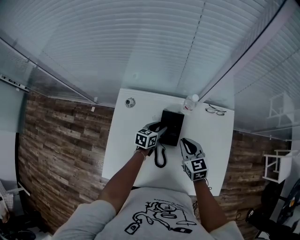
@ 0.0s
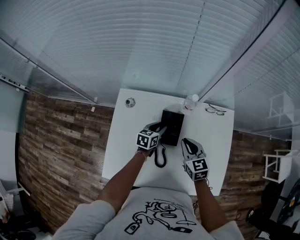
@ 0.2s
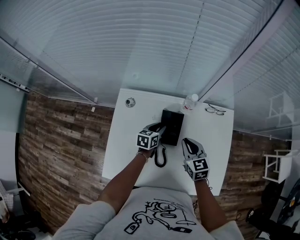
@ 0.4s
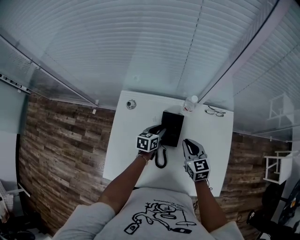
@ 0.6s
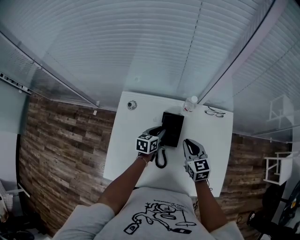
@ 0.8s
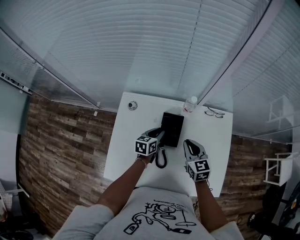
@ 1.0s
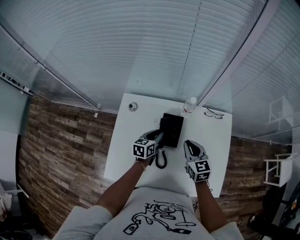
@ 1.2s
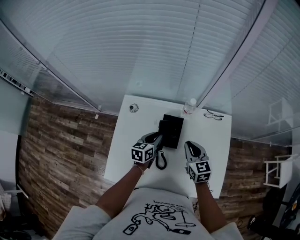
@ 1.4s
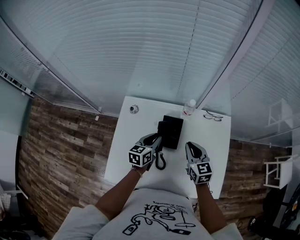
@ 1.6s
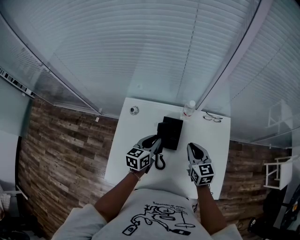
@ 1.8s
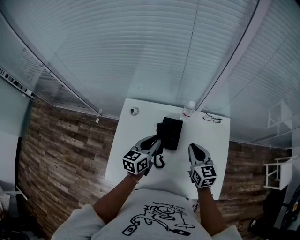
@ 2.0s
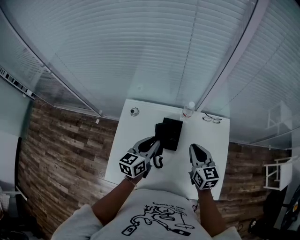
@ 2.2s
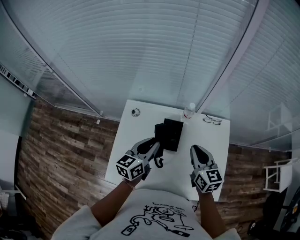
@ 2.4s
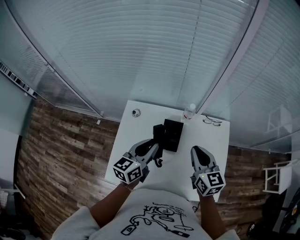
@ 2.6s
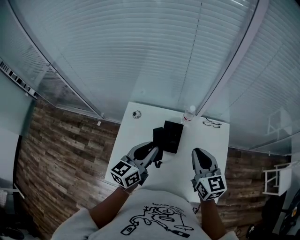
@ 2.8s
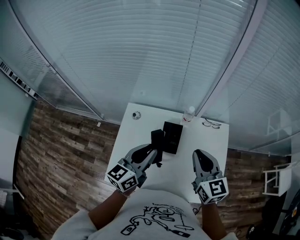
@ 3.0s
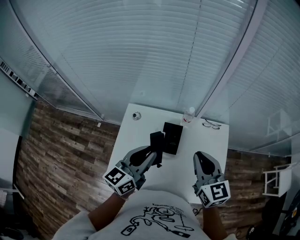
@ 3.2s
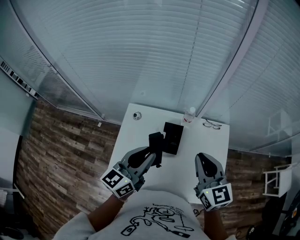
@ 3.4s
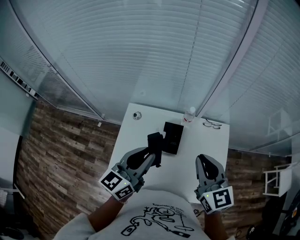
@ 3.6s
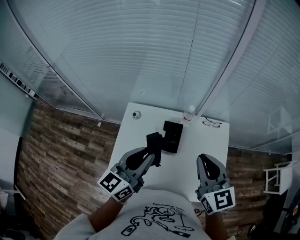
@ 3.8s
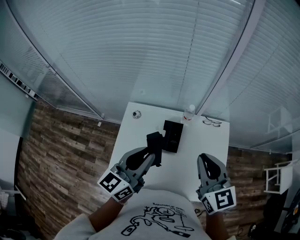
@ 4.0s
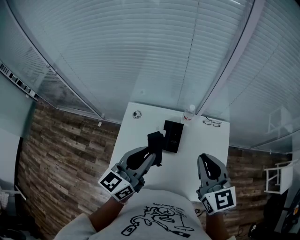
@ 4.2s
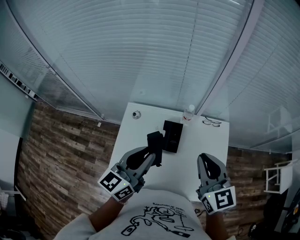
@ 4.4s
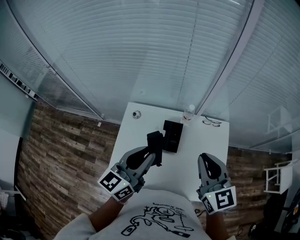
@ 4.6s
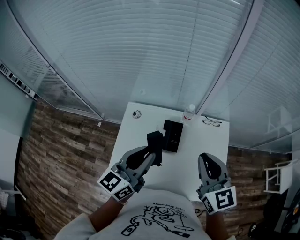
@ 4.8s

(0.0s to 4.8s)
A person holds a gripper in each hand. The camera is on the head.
0.0s - 1.6s: The right gripper is displaced upward by roughly 5 cm, while the left gripper travels upward and backward by about 15 cm, and closes up.
1.6s - 3.2s: Both grippers move upward, approximately 20 cm. The left gripper changes its angle by approximately 20 degrees.
3.2s - 4.8s: There are only small adjustments of the grippers.

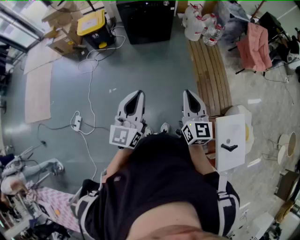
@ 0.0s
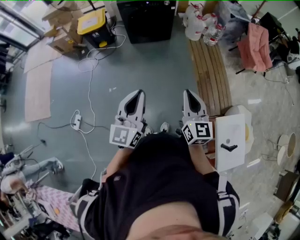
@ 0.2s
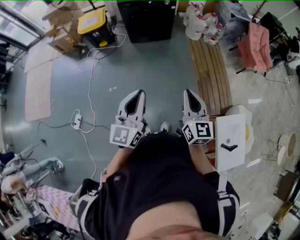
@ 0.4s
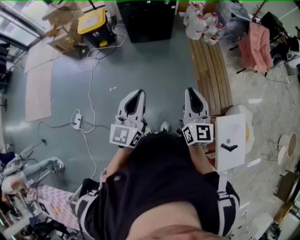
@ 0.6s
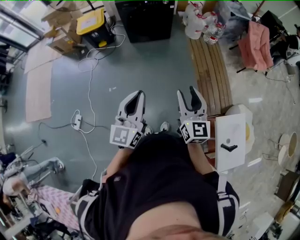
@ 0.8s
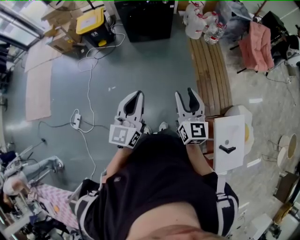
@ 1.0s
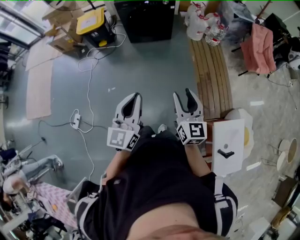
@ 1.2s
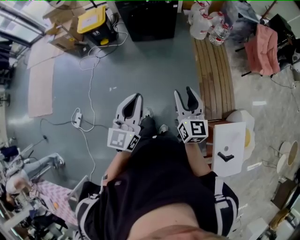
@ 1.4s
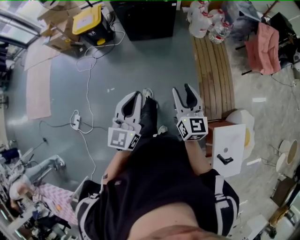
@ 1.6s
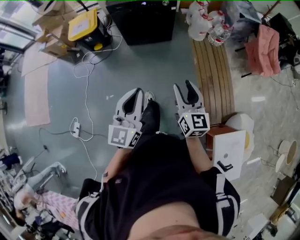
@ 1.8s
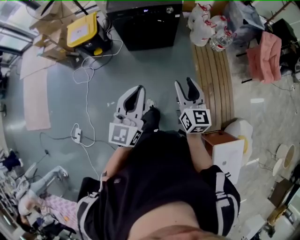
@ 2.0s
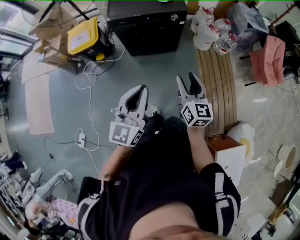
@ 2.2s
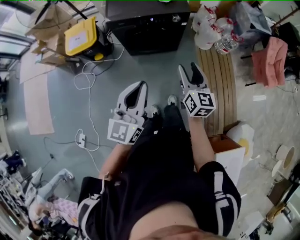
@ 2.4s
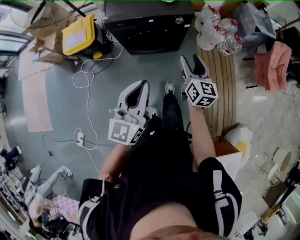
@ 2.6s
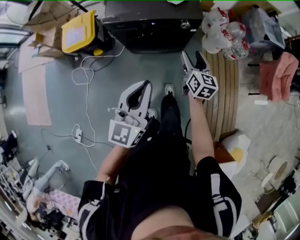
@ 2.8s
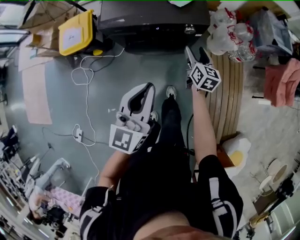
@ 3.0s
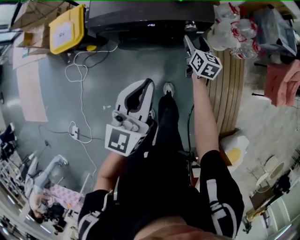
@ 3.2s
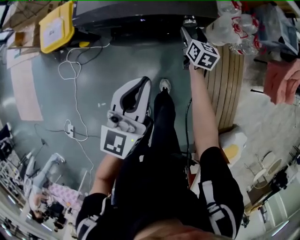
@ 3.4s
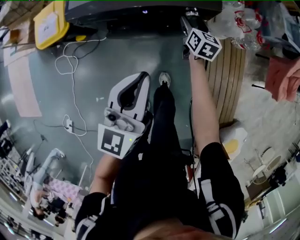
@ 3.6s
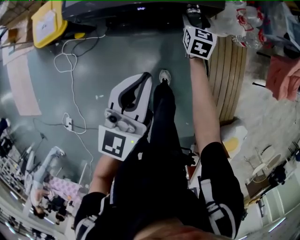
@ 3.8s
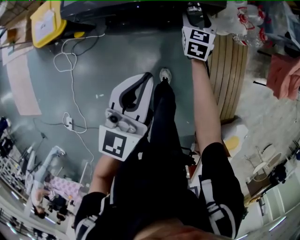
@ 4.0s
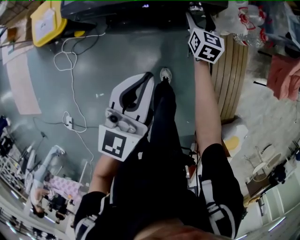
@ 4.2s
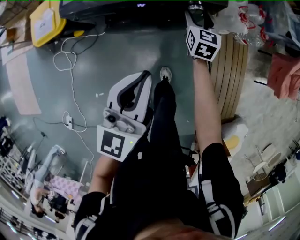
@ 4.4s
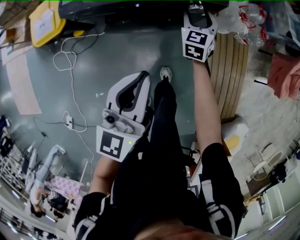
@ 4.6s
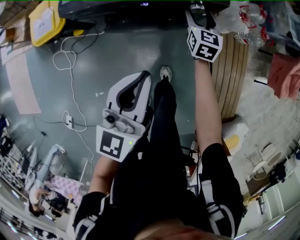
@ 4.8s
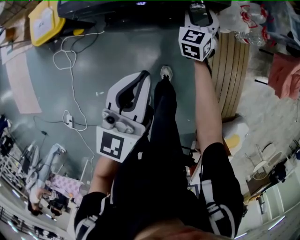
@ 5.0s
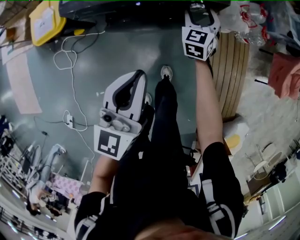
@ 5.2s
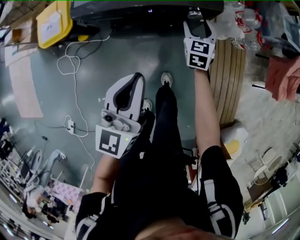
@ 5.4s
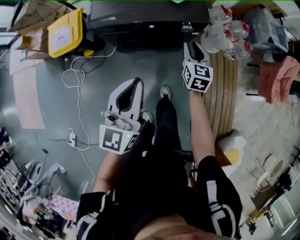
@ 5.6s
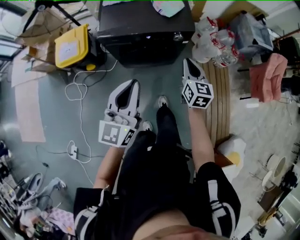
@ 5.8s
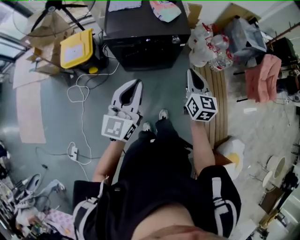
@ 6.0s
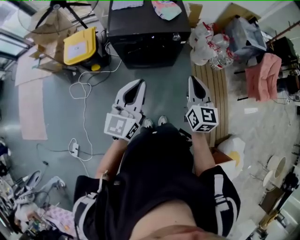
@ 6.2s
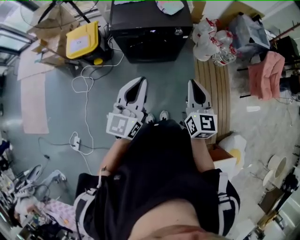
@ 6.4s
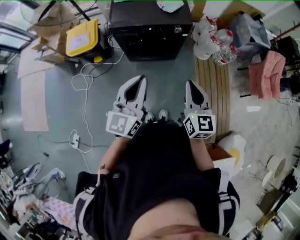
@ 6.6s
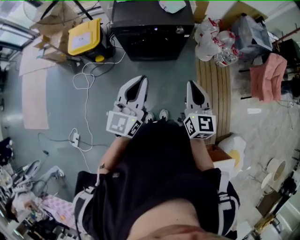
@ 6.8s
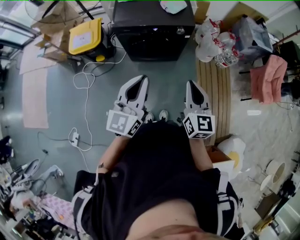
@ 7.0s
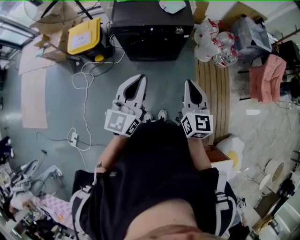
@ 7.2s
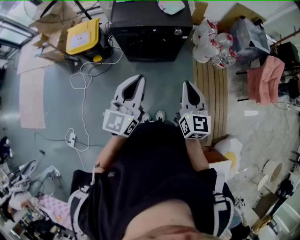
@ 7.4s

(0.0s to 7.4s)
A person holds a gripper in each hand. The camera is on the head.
0.0s - 1.4s: The right gripper is displaced forward, downward and to the right by roughly 15 cm, and opens up, while the left gripper goes roughly 10 cm forward and to the right.
1.4s - 3.0s: Both grippers are carried forward, about 1 m.
3.0s - 4.4s: Both grippers travel together downward and forward, about 25 cm. The right gripper rotates roughly 20 degrees.
4.4s - 6.0s: Both grippers move upward and backward, some 50 cm. The right gripper closes.
6.0s - 7.4s: The right gripper moves backward, about 15 cm. Meanwhile the left gripper goes some 10 cm backward.

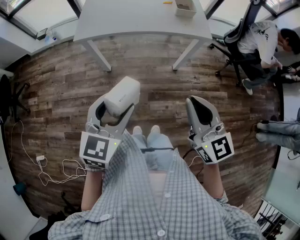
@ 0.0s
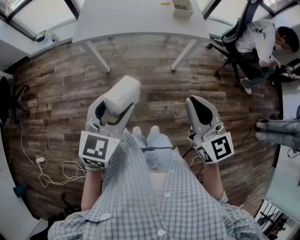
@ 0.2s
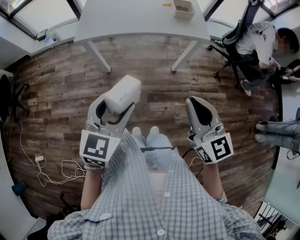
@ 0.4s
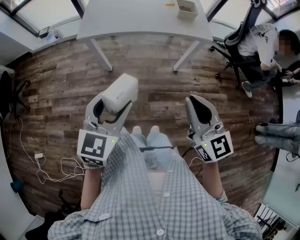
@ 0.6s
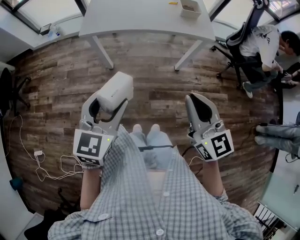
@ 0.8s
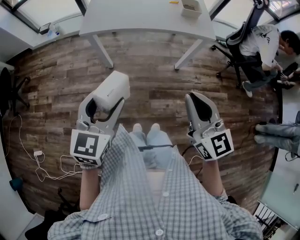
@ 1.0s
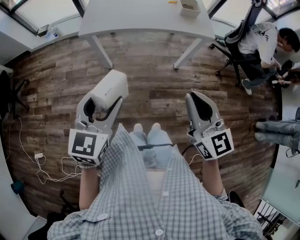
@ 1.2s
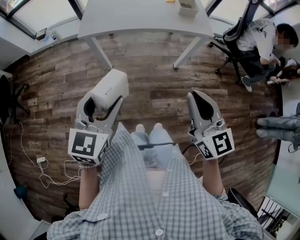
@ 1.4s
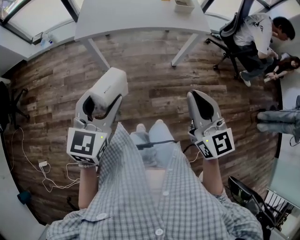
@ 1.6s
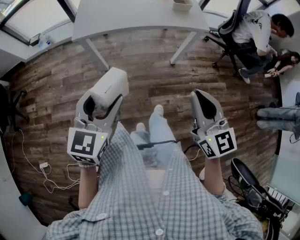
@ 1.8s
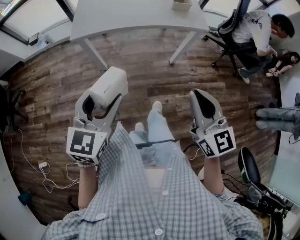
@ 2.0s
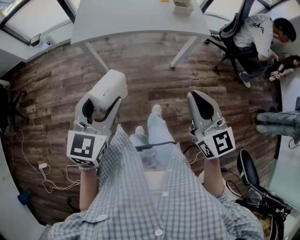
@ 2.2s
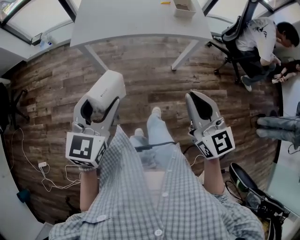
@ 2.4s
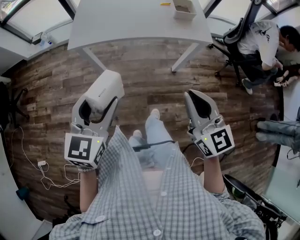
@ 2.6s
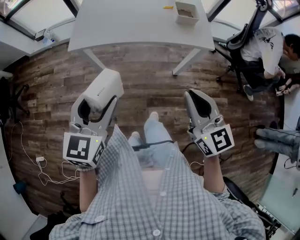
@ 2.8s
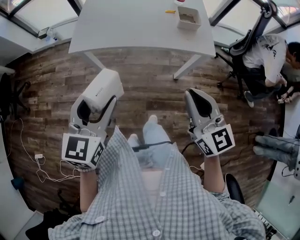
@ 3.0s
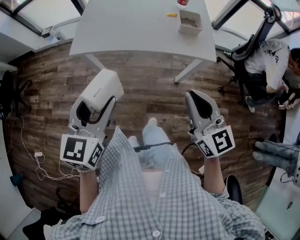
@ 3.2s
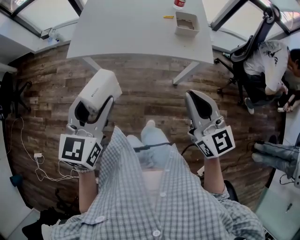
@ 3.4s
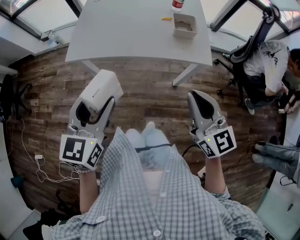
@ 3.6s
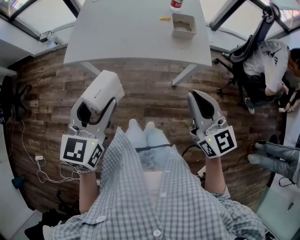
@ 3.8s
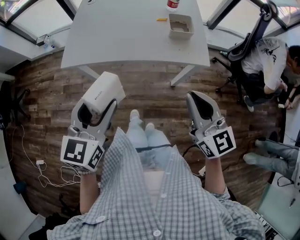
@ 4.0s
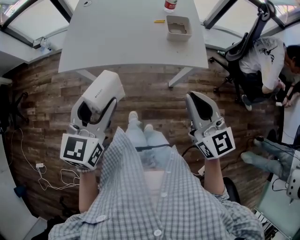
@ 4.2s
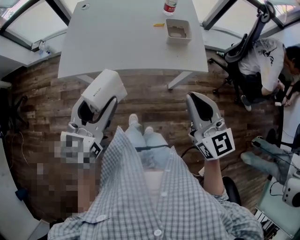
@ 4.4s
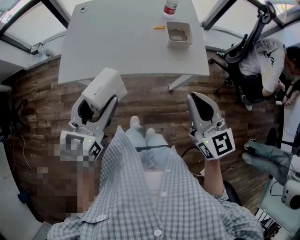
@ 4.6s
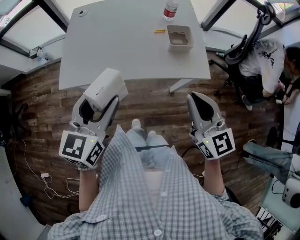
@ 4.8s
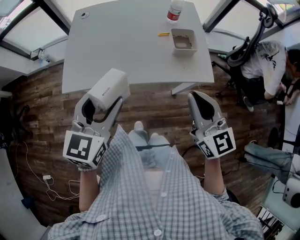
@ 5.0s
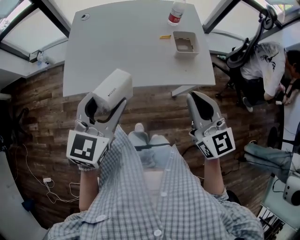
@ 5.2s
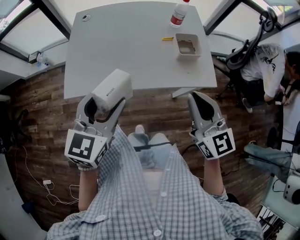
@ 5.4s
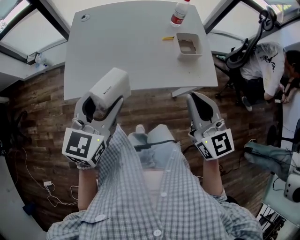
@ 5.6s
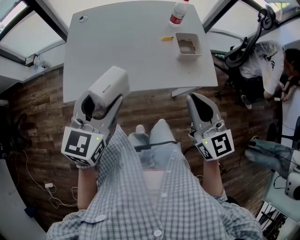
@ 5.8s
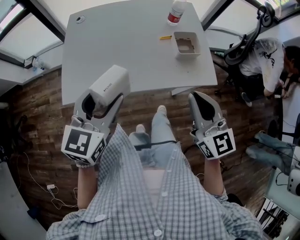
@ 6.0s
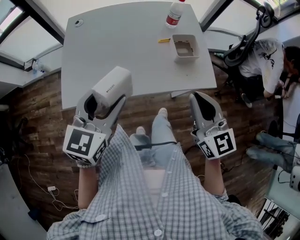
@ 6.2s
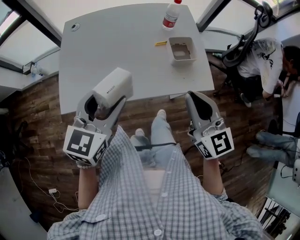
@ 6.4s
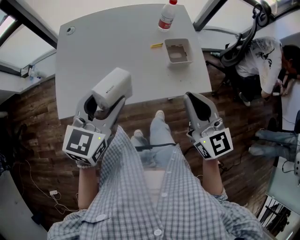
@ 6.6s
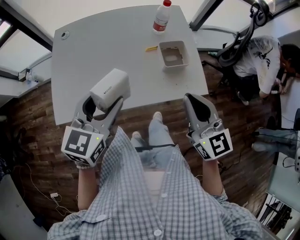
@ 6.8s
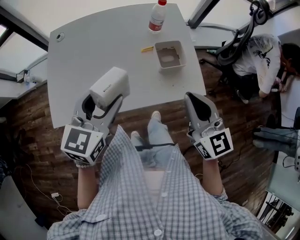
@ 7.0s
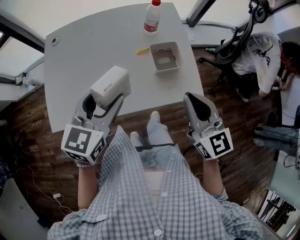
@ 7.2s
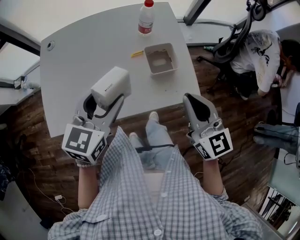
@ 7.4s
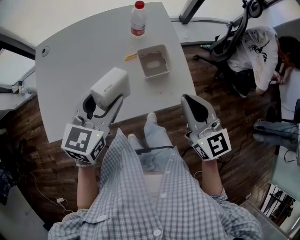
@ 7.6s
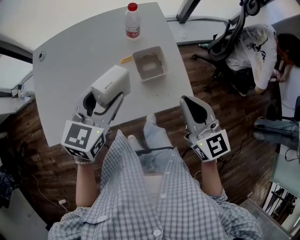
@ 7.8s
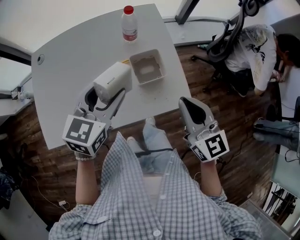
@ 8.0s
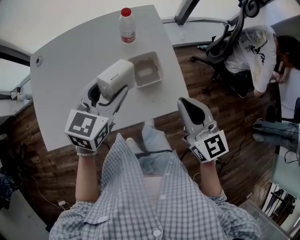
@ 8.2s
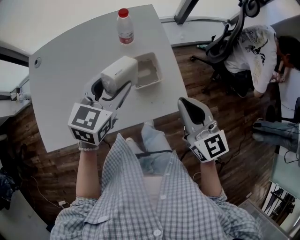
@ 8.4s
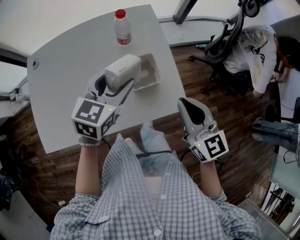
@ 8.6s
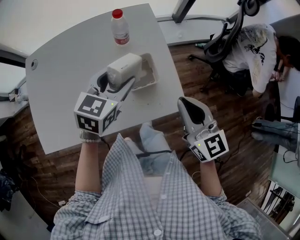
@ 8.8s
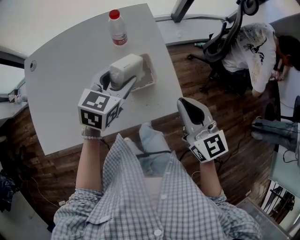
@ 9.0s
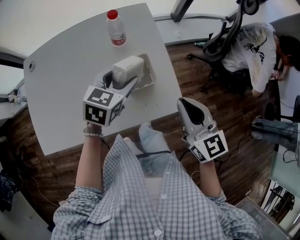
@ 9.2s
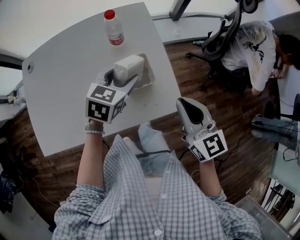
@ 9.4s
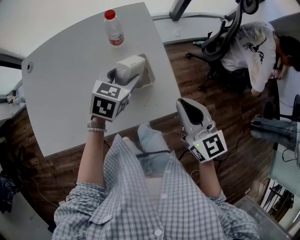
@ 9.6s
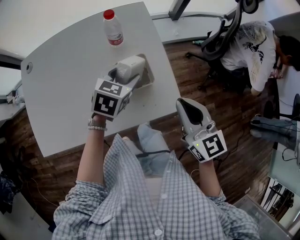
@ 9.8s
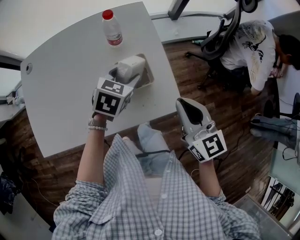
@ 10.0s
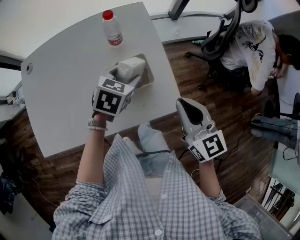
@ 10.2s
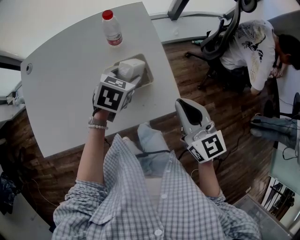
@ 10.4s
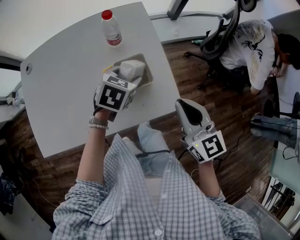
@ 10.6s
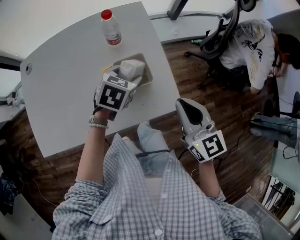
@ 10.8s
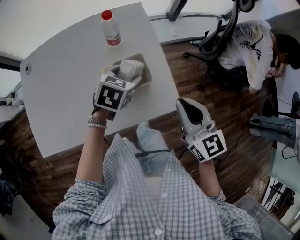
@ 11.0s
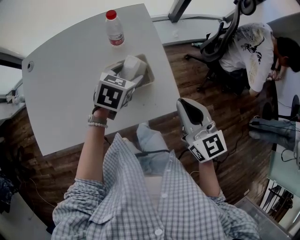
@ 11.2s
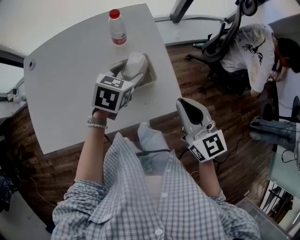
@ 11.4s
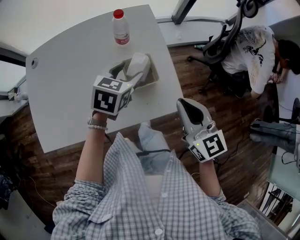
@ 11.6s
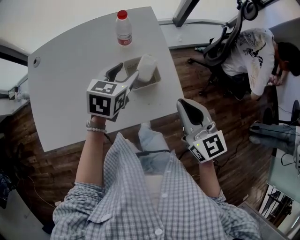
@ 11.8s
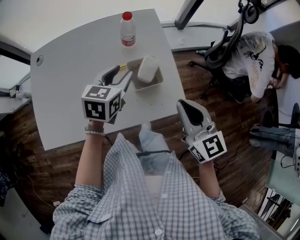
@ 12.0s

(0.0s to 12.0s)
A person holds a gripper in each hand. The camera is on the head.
0.0s - 1.6s: The left gripper heads to the left, covering about 5 cm.
1.6s - 3.0s: The grippers both shift forward by about 15 cm.
3.0s - 4.4s: Both grippers move forward and to the right, approximately 10 cm.
4.4s - 6.0s: The right gripper is displaced forward and to the left by about 10 cm. Meanwhile the left gripper heads forward, covering about 10 cm.
6.0s - 7.6s: Both grippers move forward and to the right, approximately 15 cm.
7.6s - 9.0s: The left gripper shifts roughly 15 cm forward, to the right and downward. The right gripper goes about 5 cm to the right.
9.0s - 10.4s: The left gripper goes approximately 5 cm downward.
10.4s - 12.0s: The left gripper shifts about 10 cm to the left and upward, and swivels about 20 degrees.
